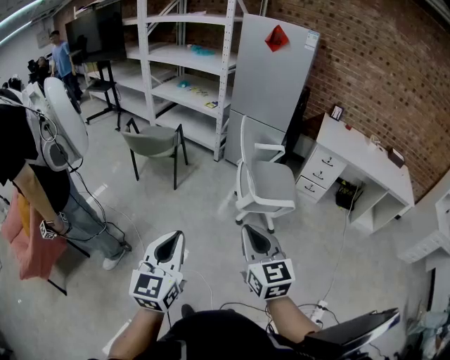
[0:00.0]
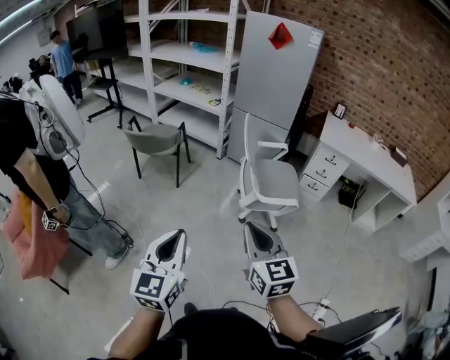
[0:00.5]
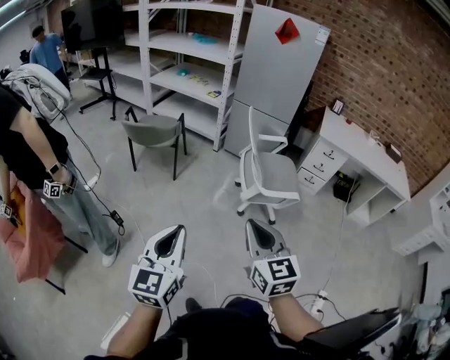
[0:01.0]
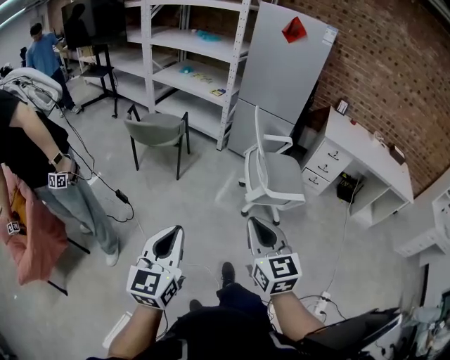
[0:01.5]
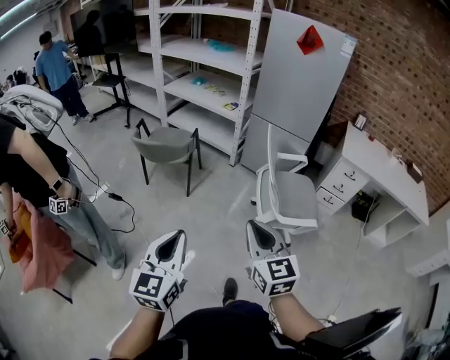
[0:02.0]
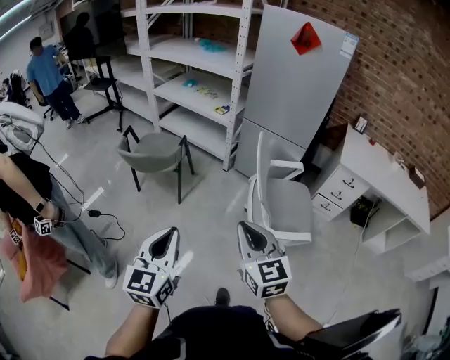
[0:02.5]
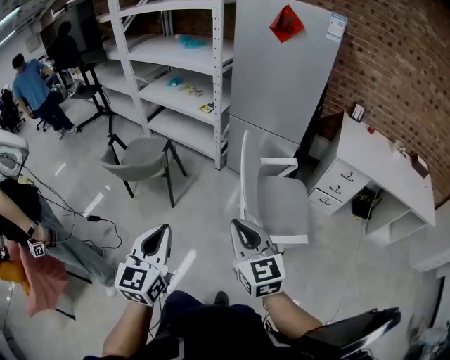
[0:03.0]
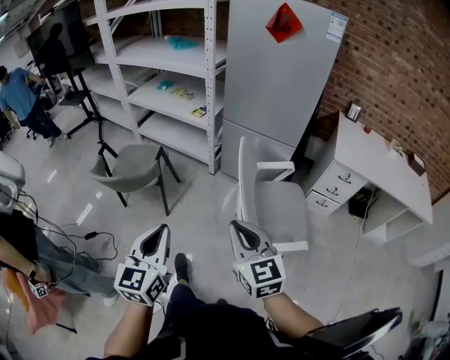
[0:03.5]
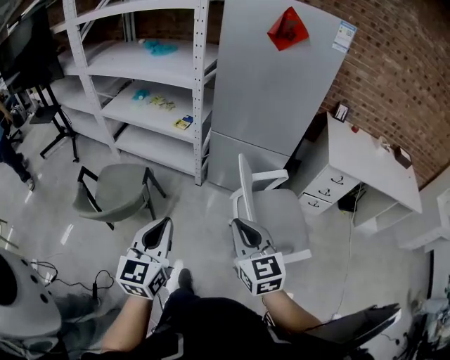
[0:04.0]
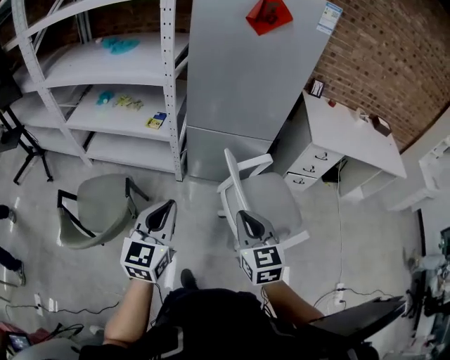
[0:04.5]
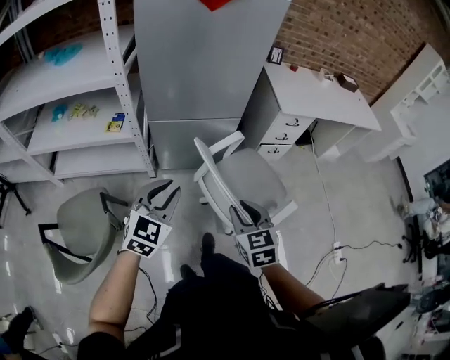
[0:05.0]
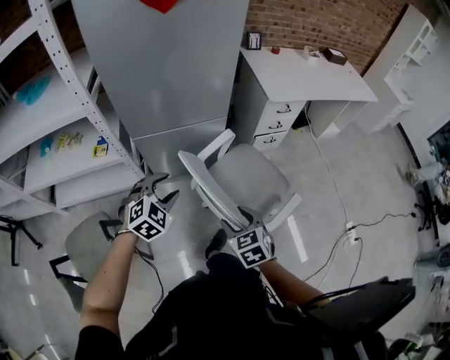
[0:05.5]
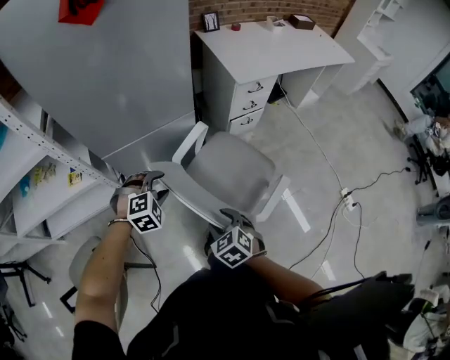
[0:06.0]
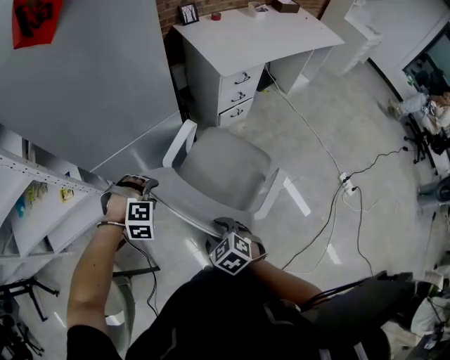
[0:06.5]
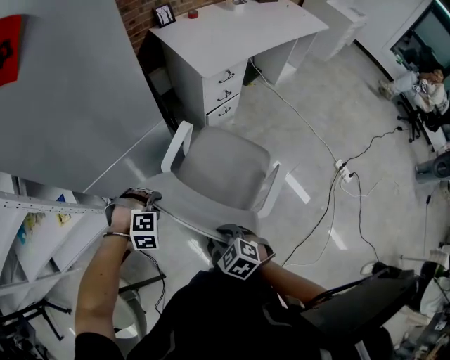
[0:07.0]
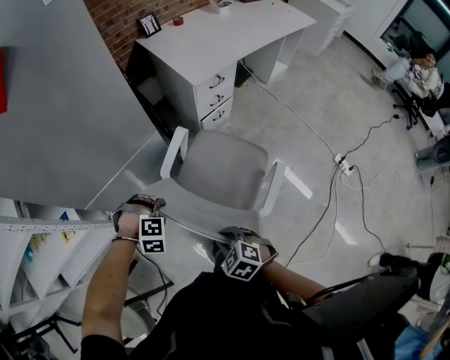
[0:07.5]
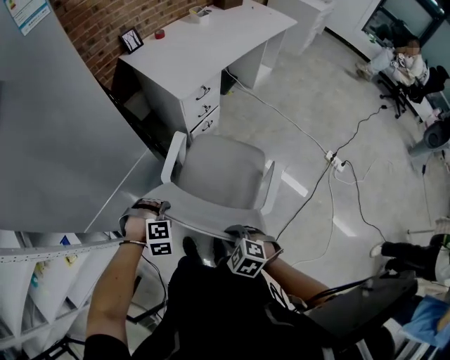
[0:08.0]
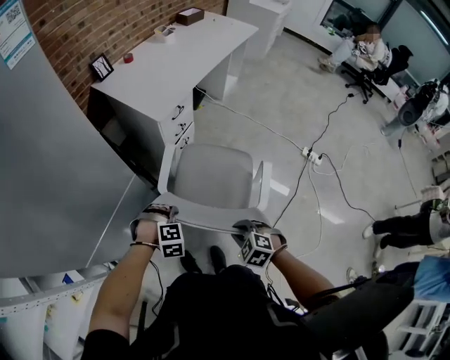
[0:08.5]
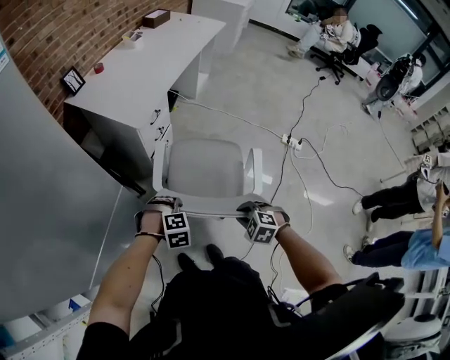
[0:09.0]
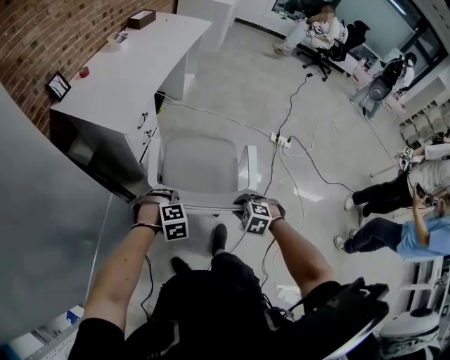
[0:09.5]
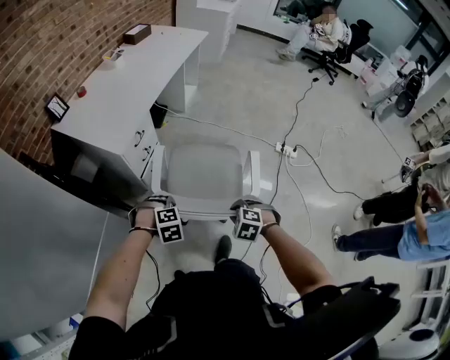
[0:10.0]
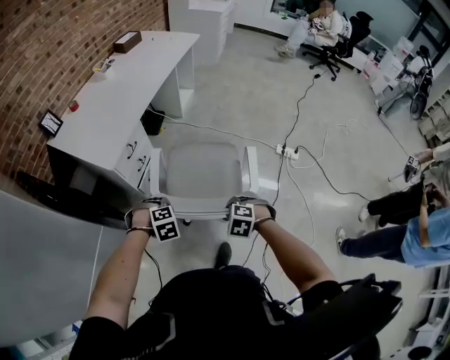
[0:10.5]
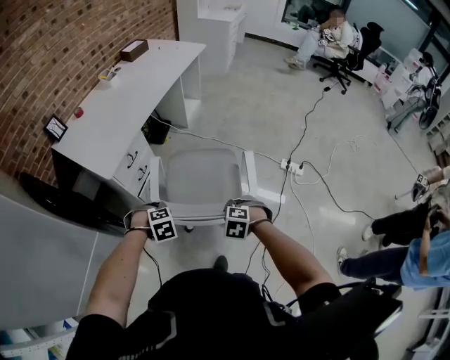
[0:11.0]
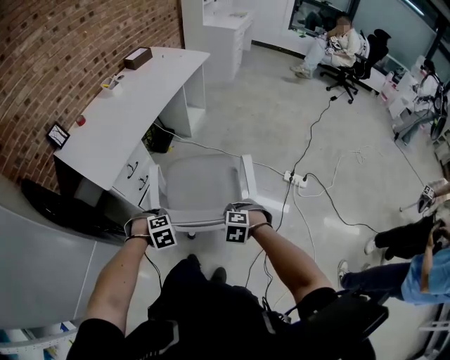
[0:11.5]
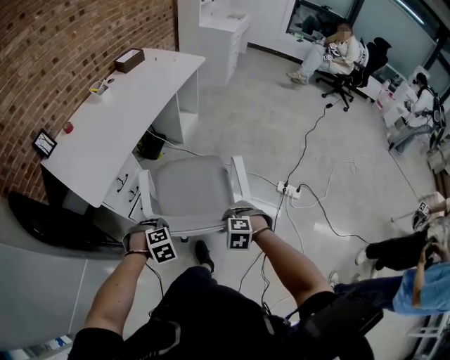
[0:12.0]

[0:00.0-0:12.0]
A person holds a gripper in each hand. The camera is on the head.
0.0 to 2.0 s: The two grippers go about 20 cm forward and to the left.
2.0 to 4.0 s: The two grippers go about 40 cm forward.
4.0 to 6.0 s: The left gripper moves about 50 cm, angles its fingers downward, by approximately 50 degrees, and opens up, while the right gripper heads downward, covering approximately 25 cm, points its fingers about 40 degrees further downward, and opens its fingers.
6.0 to 8.0 s: The left gripper changes place by approximately 15 cm, turns by about 40 degrees, and closes its fingers. The right gripper moves some 10 cm, and closes up.
8.0 to 10.0 s: The left gripper ends up roughly 20 cm from where it was. The right gripper changes place by some 25 cm, and turns by some 20 degrees.
10.0 to 12.0 s: The left gripper moves about 20 cm. Meanwhile the right gripper shifts by some 25 cm.

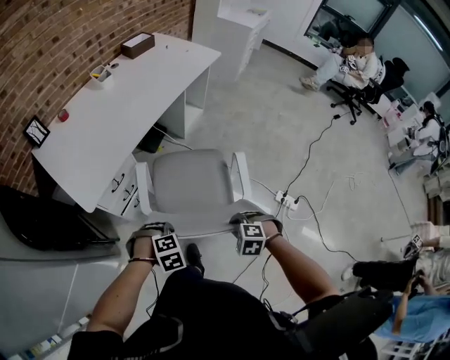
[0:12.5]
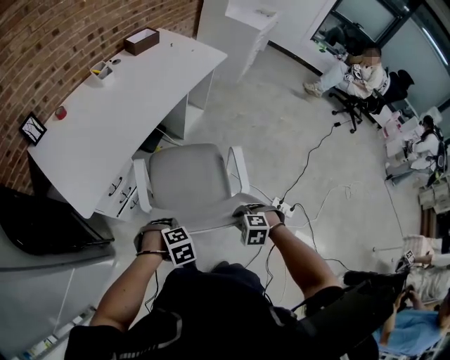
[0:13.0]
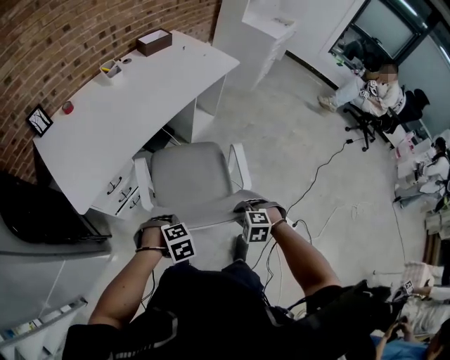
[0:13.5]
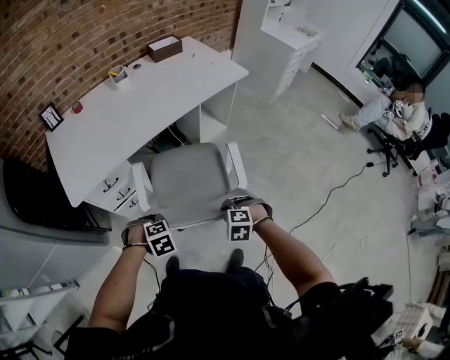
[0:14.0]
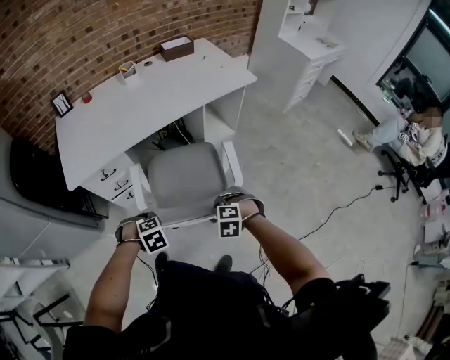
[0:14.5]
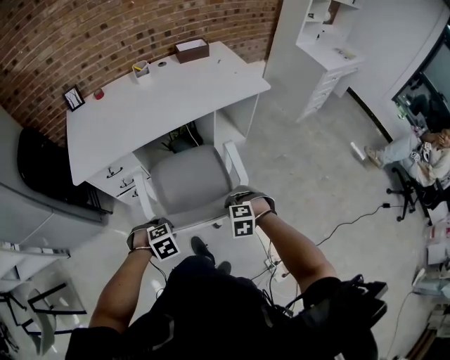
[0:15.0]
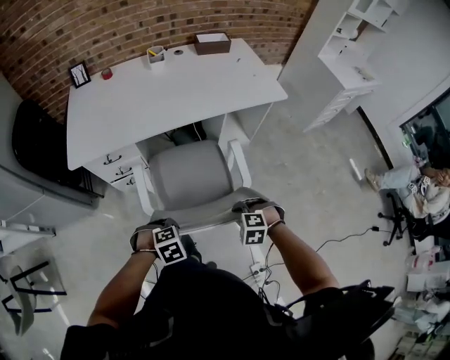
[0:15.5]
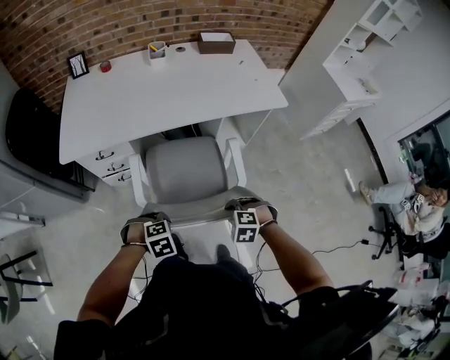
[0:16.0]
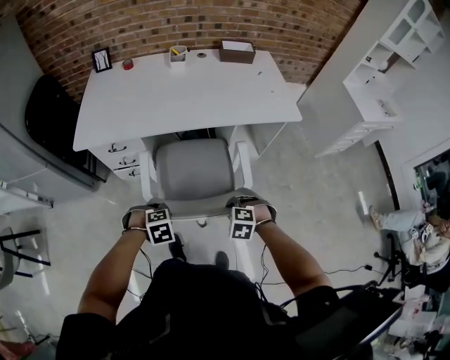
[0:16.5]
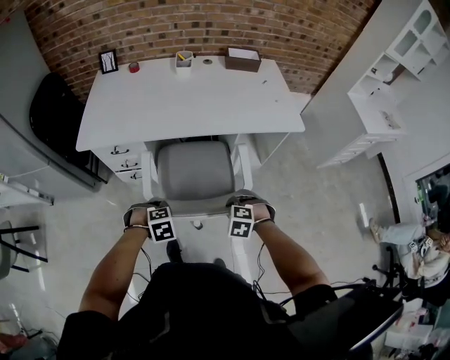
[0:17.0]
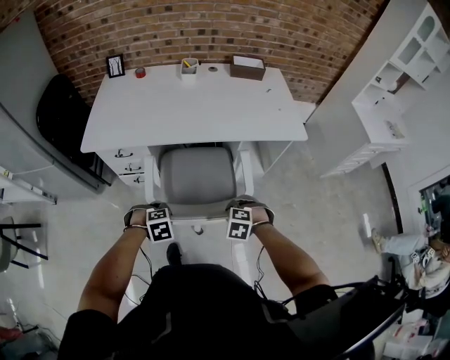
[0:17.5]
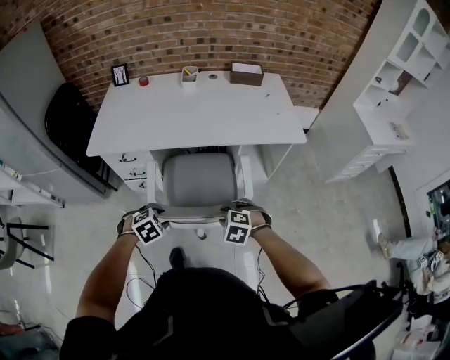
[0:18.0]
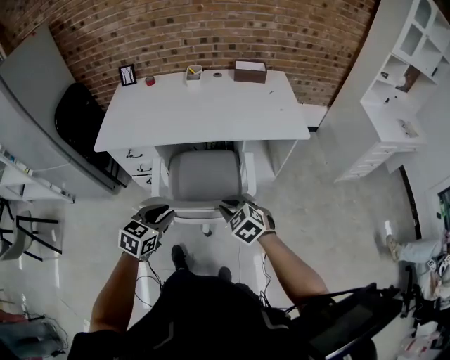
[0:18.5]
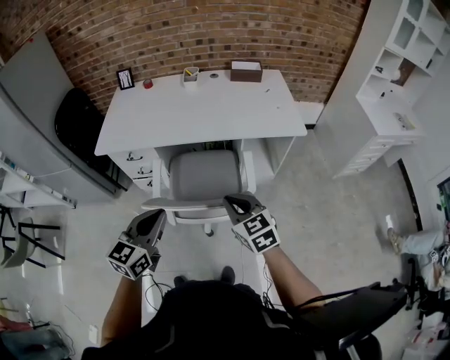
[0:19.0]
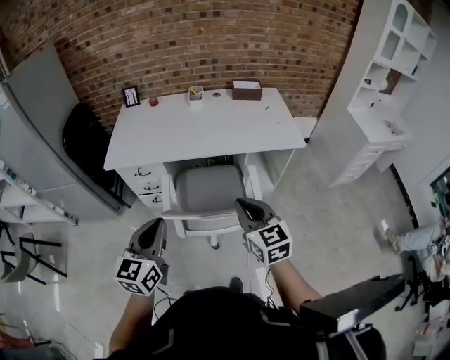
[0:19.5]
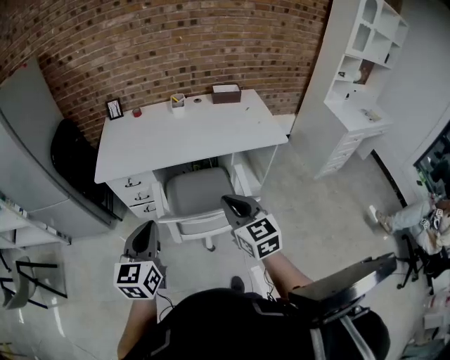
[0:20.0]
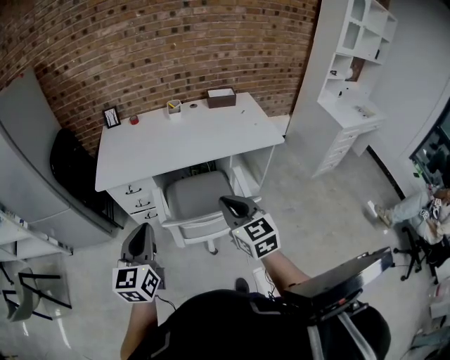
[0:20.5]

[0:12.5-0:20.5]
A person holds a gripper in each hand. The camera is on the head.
12.5 to 14.5 s: The right gripper shifts by roughly 30 cm, and rotates some 30 degrees, while the left gripper shifts by some 25 cm, and changes its angle by approximately 40 degrees.
14.5 to 16.5 s: The right gripper shifts by approximately 15 cm. The left gripper shifts by some 15 cm.
16.5 to 18.5 s: Both grippers move upward, approximately 10 cm. The left gripper angles its fingers upward, by roughly 50 degrees. Meanwhile the right gripper rotates approximately 30 degrees.
18.5 to 20.5 s: The left gripper heads upward and to the left, covering some 25 cm, swivels approximately 30 degrees, and closes its fingers. Meanwhile the right gripper heads upward, covering roughly 20 cm, and tips its fingers upward by some 30 degrees.

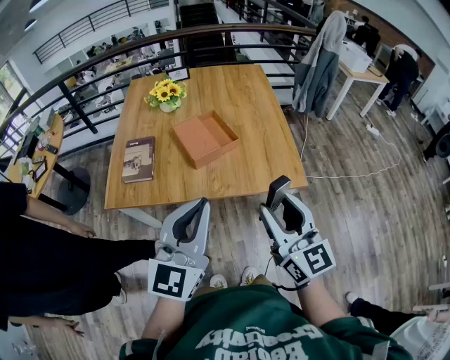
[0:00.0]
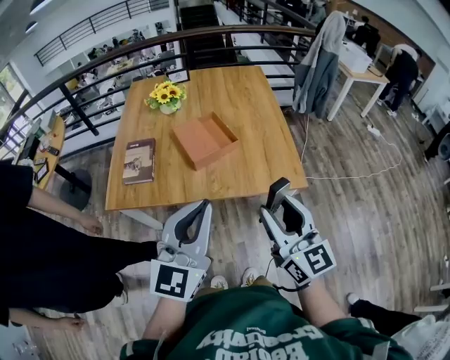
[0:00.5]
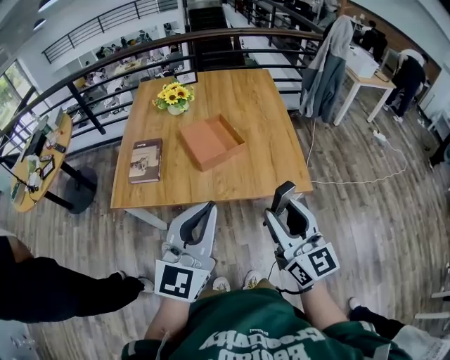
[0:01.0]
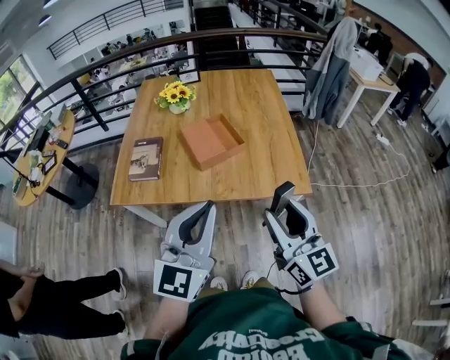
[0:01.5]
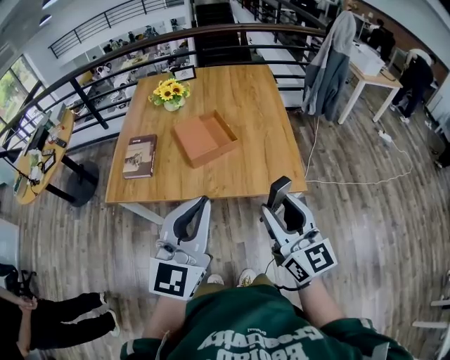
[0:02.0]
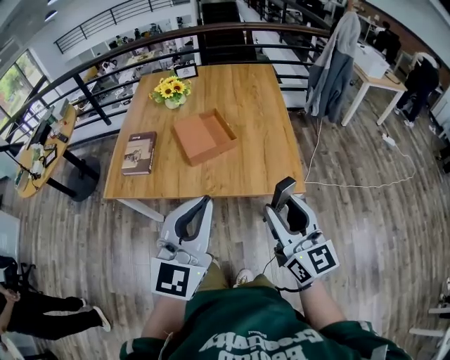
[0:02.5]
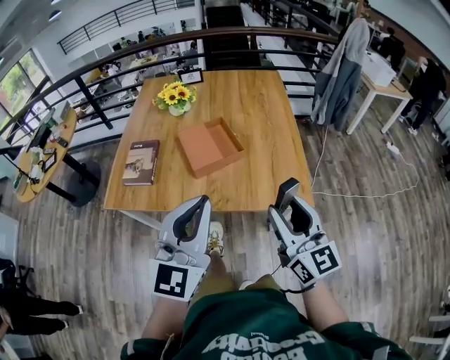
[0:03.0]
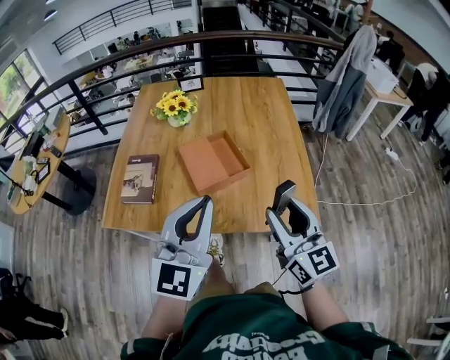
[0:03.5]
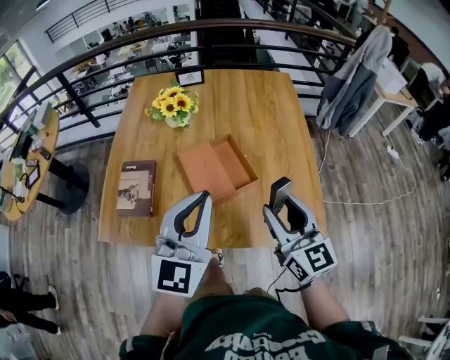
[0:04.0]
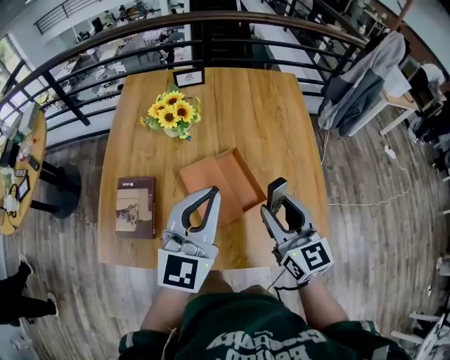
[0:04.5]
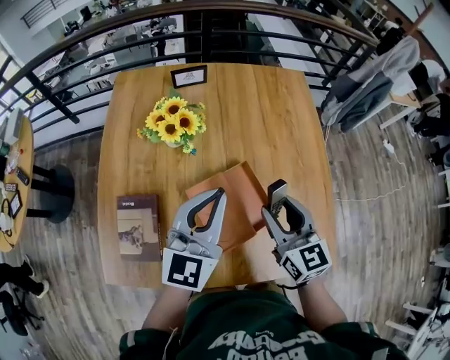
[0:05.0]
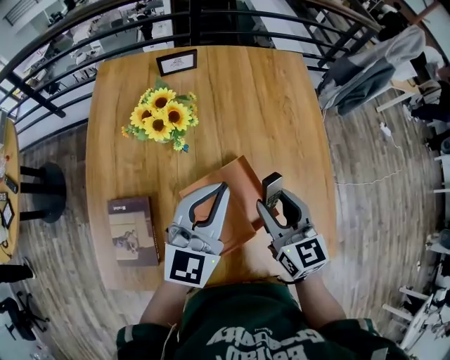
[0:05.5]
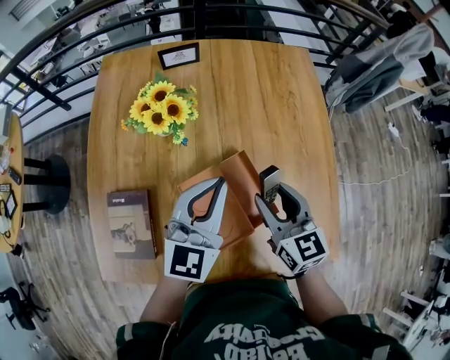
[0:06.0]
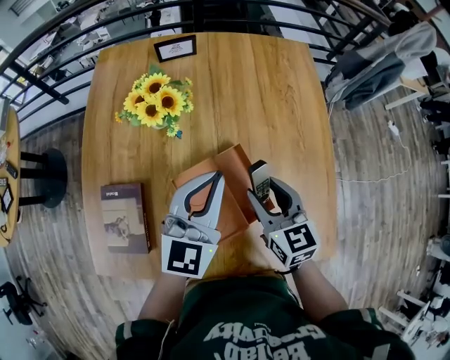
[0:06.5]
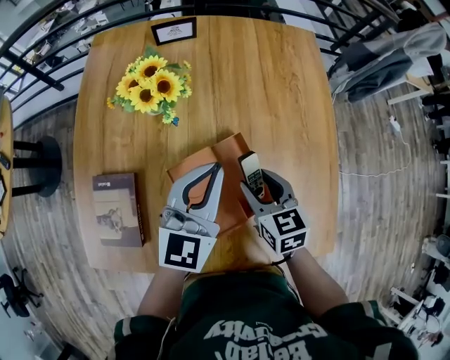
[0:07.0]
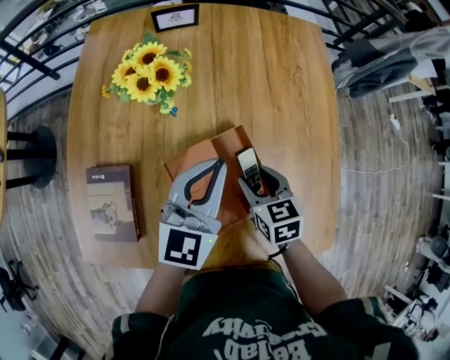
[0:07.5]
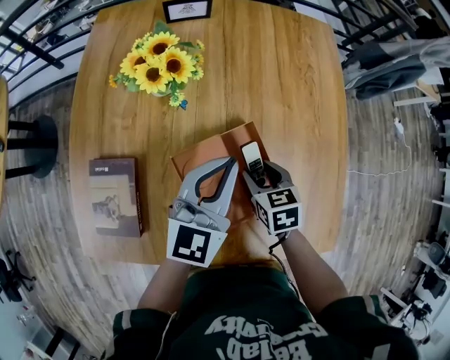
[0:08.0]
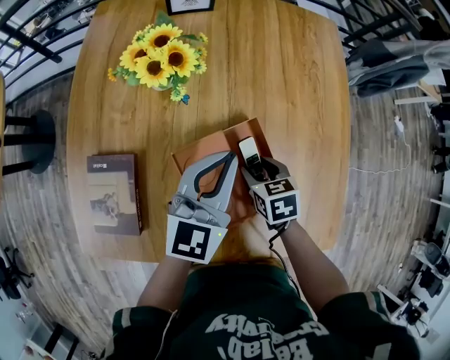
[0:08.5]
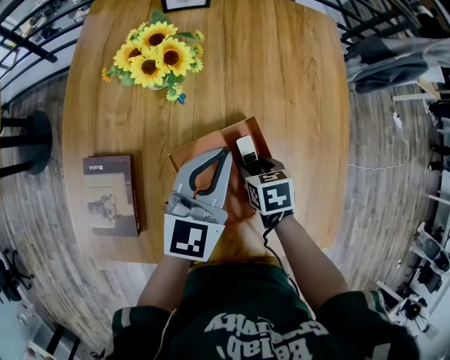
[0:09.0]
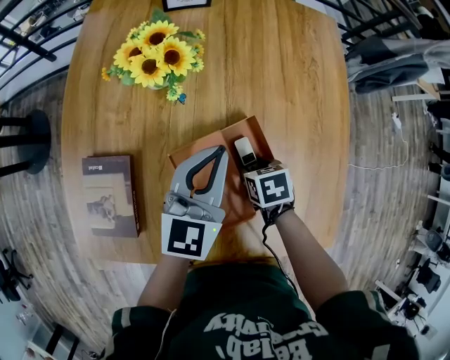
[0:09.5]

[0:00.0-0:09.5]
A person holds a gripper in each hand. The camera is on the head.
0.0 to 2.0 s: The two grippers go about 5 cm to the right.
2.0 to 4.0 s: Both grippers move forward, approximately 25 cm.
4.0 to 5.5 s: The grippers both shift forward by roughly 25 cm.
5.5 to 7.5 s: The right gripper shifts roughly 15 cm downward, and changes its angle by some 30 degrees. Meanwhile the left gripper travels downward by approximately 5 cm.
7.5 to 9.5 s: The right gripper shifts roughly 10 cm downward, and rotates about 30 degrees.
